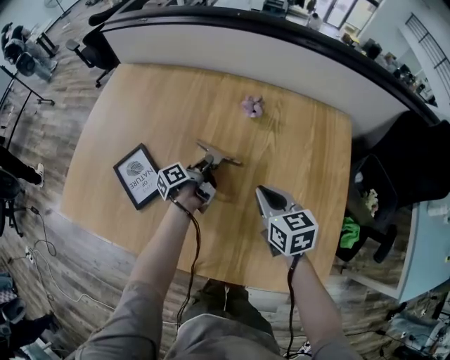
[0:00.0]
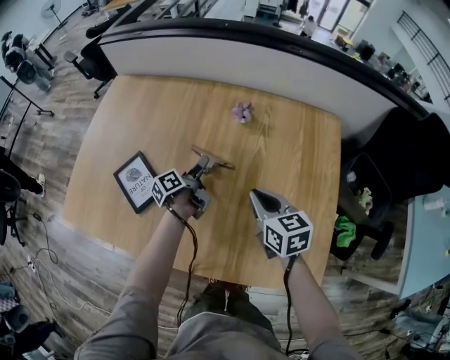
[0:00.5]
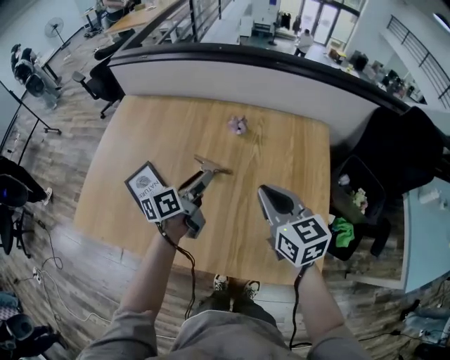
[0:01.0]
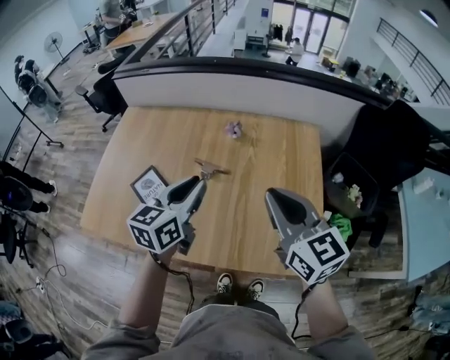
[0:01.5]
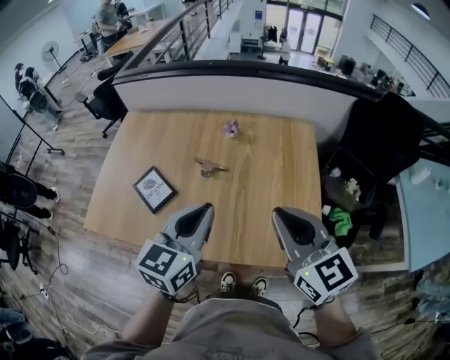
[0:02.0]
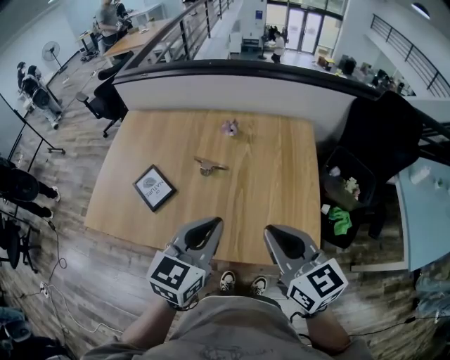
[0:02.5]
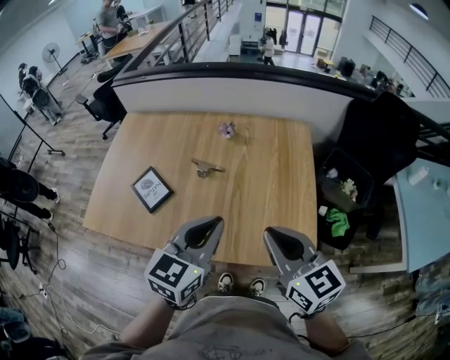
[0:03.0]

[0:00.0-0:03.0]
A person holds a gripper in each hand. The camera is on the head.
0:00.0 to 0:01.5: The grippers both shift upward and backward by approximately 35 cm. The left gripper rotates around the line of its fingers by approximately 70 degrees, clockwise from behind, and opens and closes again, while the right gripper turns by approximately 30 degrees.
0:01.5 to 0:03.0: The right gripper travels backward by about 10 cm; the left gripper is displaced backward and to the right by approximately 15 cm.

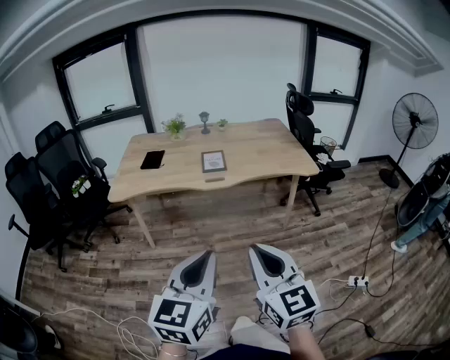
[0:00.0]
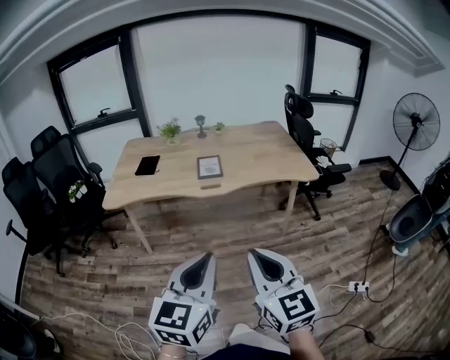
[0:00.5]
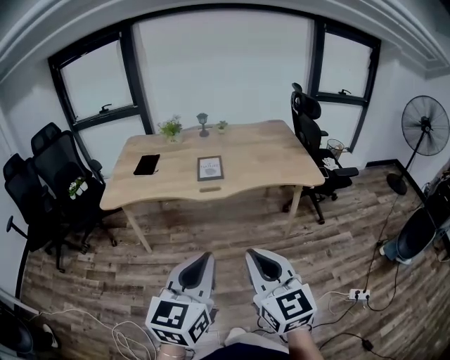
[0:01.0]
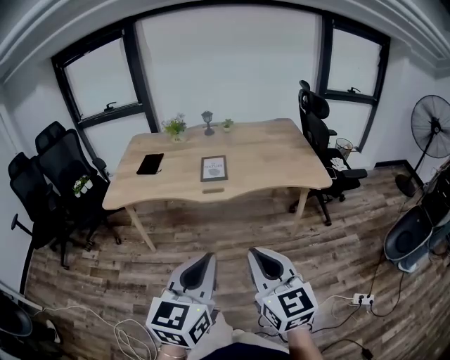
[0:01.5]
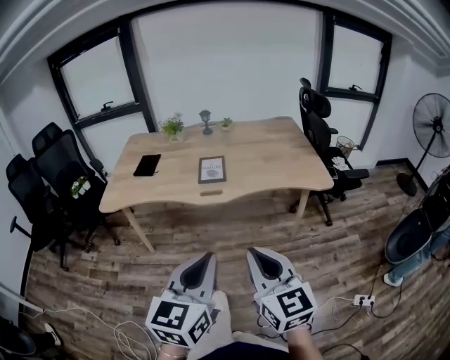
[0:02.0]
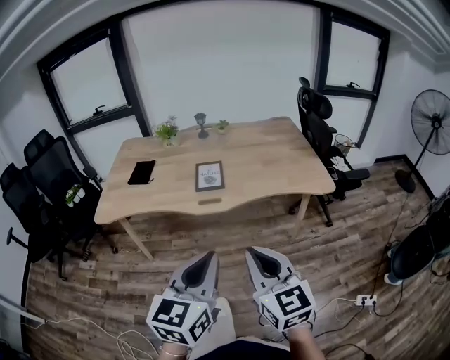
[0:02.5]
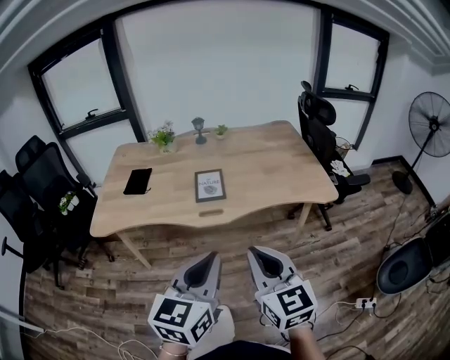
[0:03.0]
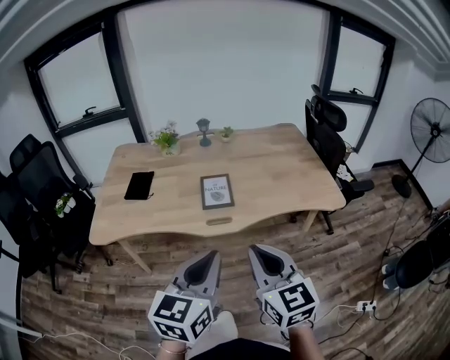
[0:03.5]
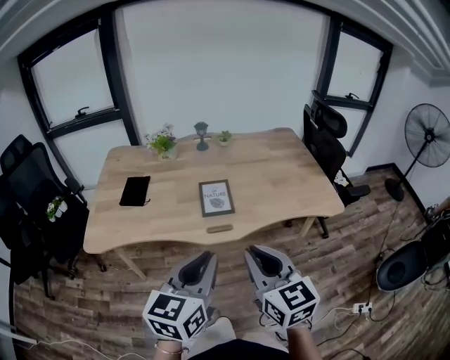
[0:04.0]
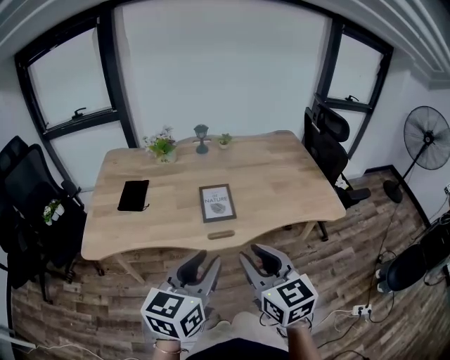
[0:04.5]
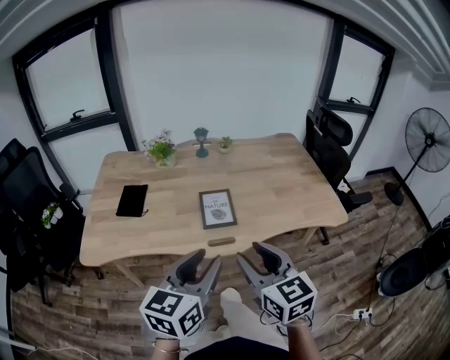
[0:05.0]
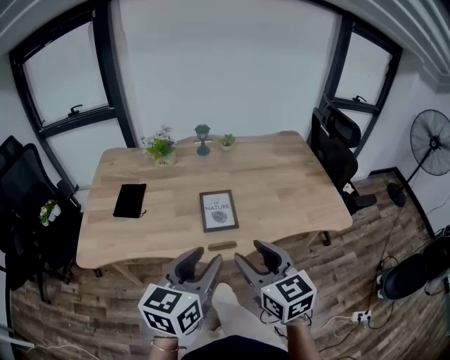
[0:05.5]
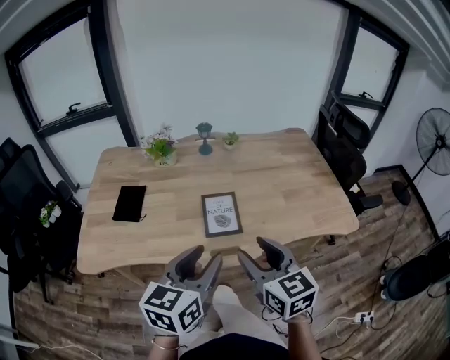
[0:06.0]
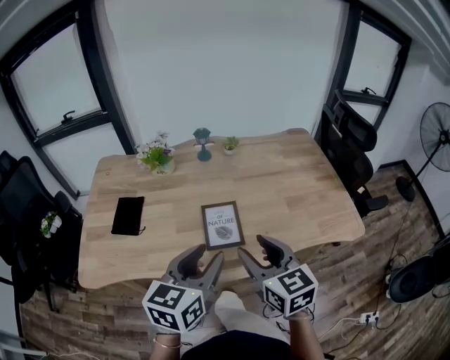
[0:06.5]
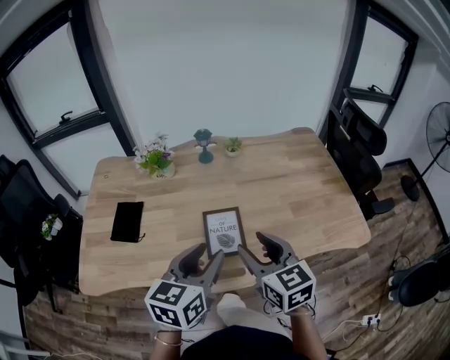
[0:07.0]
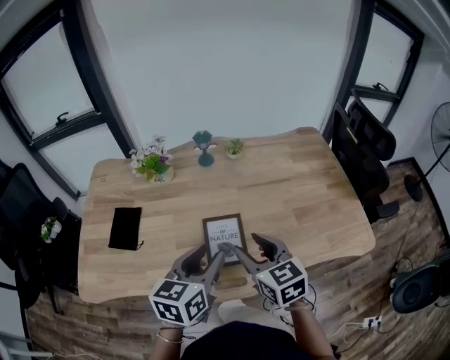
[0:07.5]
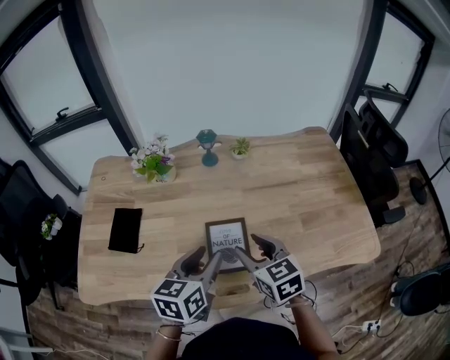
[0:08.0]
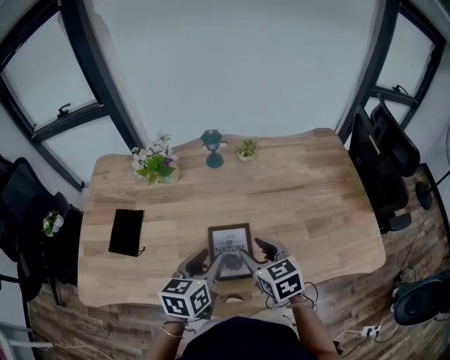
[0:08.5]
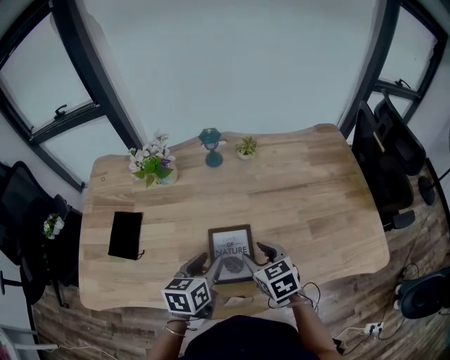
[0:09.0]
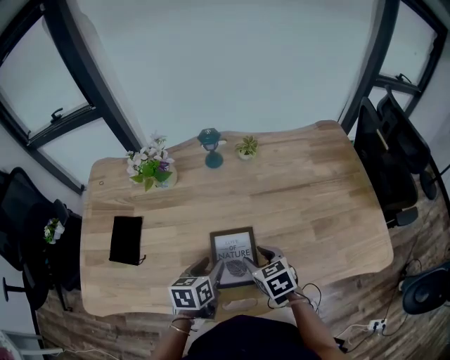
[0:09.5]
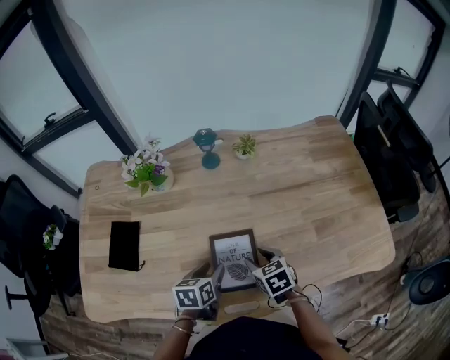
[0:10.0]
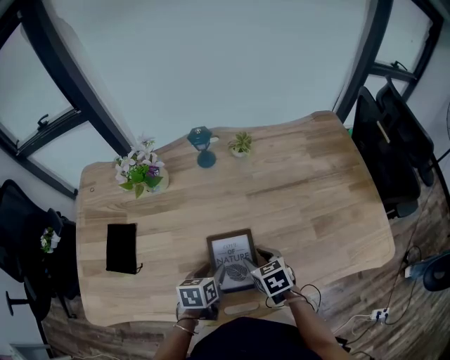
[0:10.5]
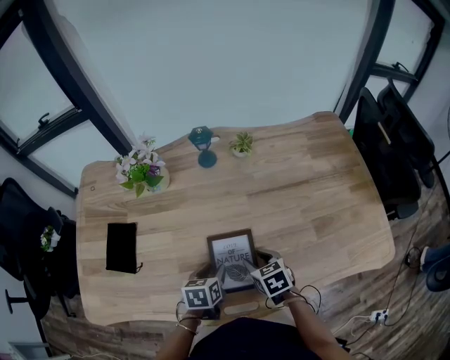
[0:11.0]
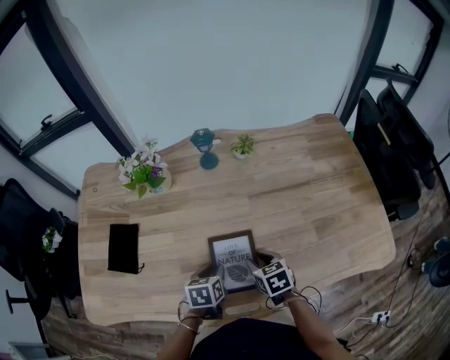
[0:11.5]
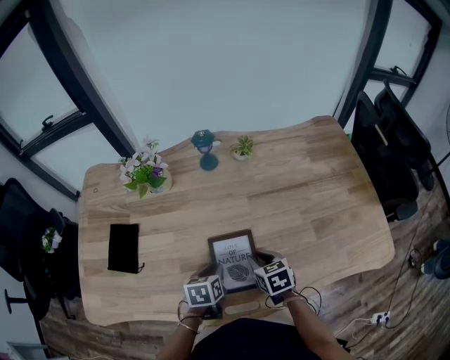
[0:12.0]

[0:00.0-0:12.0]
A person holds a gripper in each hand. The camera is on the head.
0:00.0 to 0:02.0: Both grippers move forward and to the right, some 20 cm.
0:02.0 to 0:04.0: The grippers both shift forward and to the left by about 25 cm.
0:04.0 to 0:06.0: Both grippers move forward, some 15 cm. The right gripper opens its fingers; the left gripper opens.
0:06.0 to 0:08.0: The two grippers go some 25 cm forward and downward.
0:08.0 to 0:10.0: Both grippers move downward, about 20 cm. The right gripper changes its angle by approximately 20 degrees. The left gripper swivels some 20 degrees.
0:10.0 to 0:12.0: The right gripper closes up.

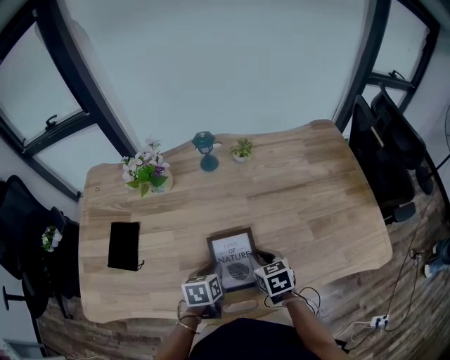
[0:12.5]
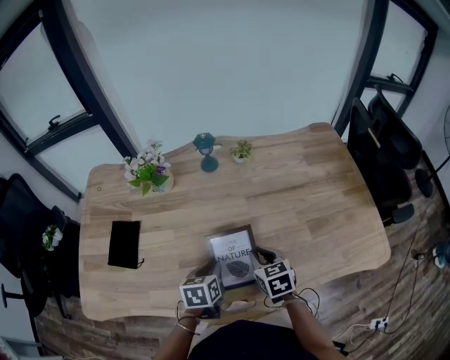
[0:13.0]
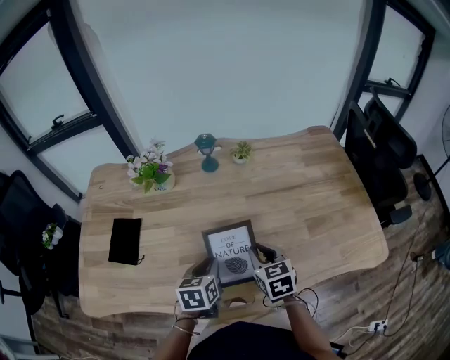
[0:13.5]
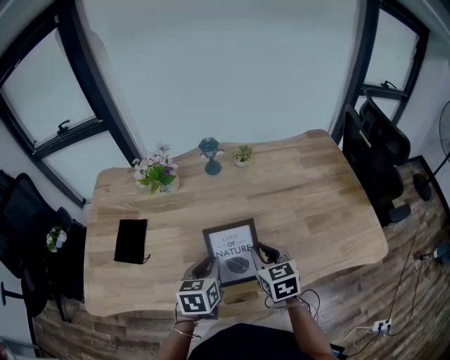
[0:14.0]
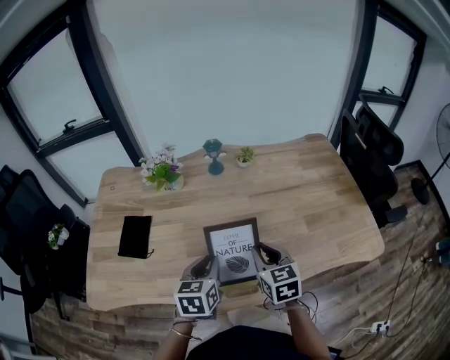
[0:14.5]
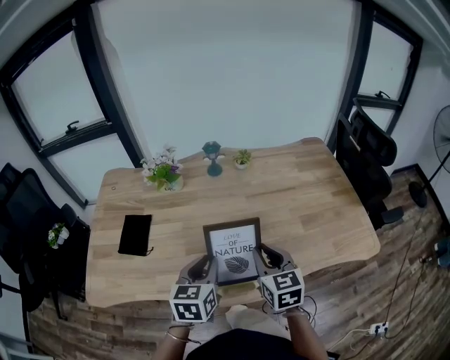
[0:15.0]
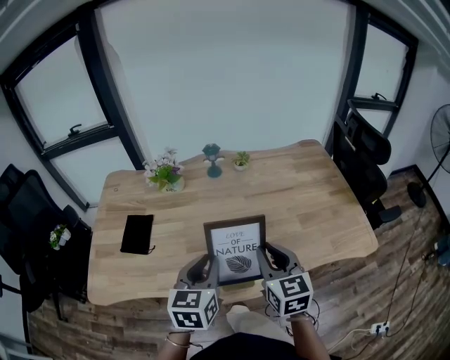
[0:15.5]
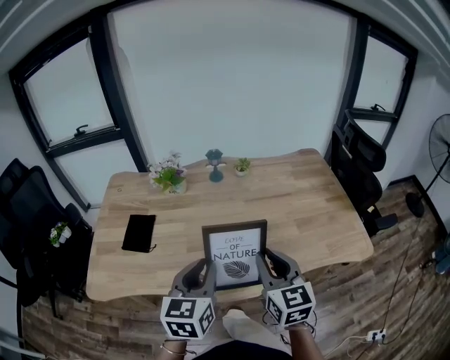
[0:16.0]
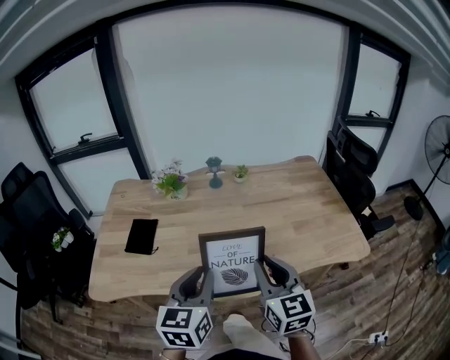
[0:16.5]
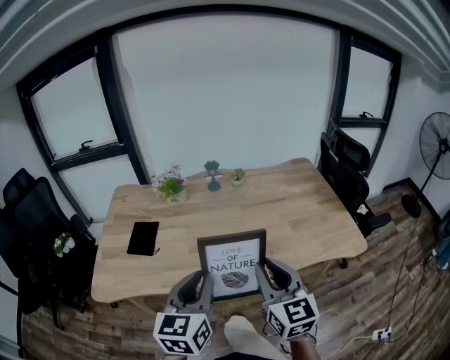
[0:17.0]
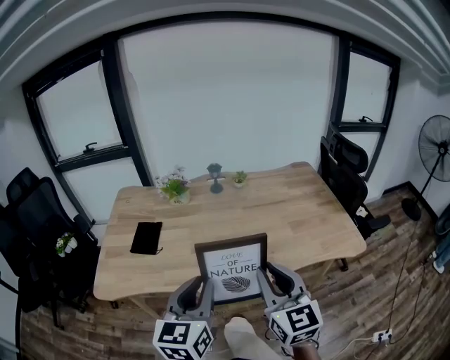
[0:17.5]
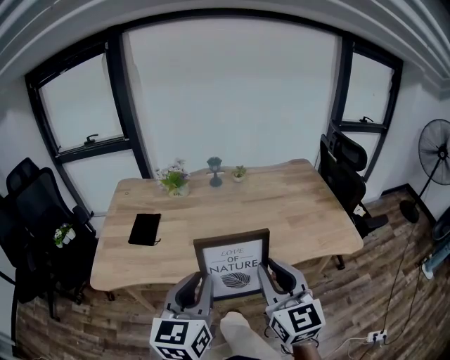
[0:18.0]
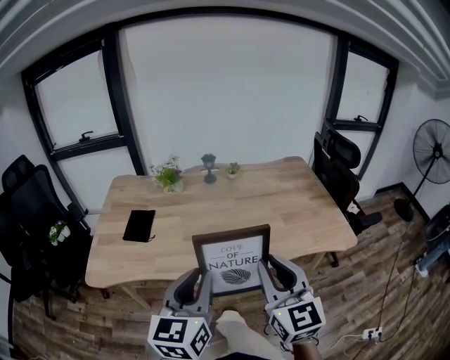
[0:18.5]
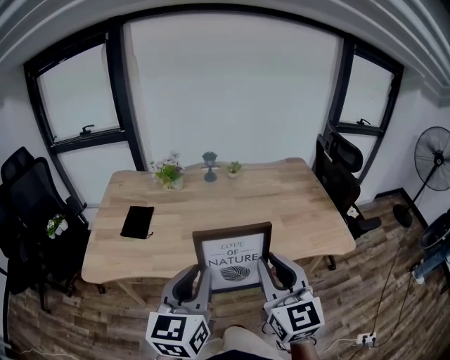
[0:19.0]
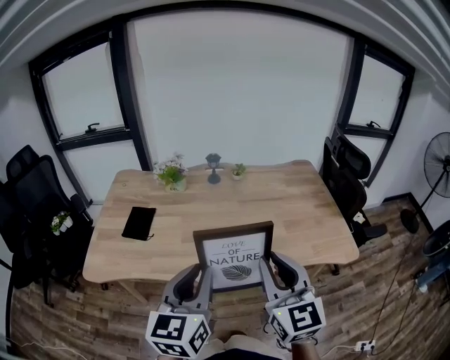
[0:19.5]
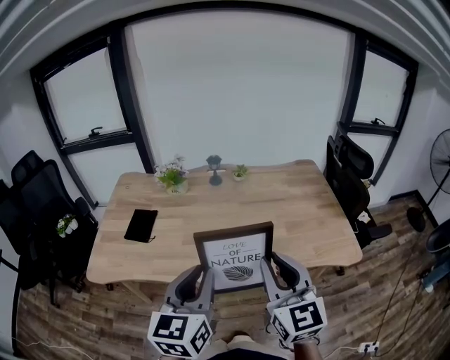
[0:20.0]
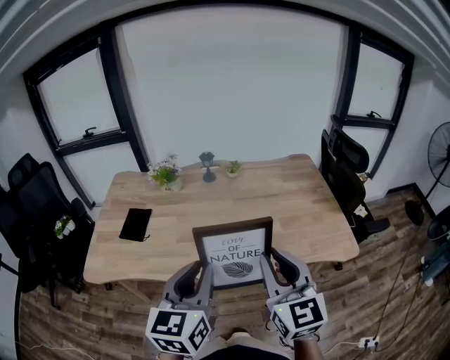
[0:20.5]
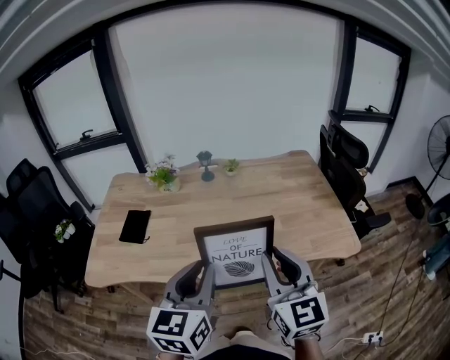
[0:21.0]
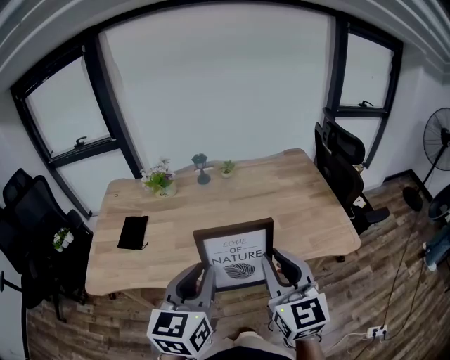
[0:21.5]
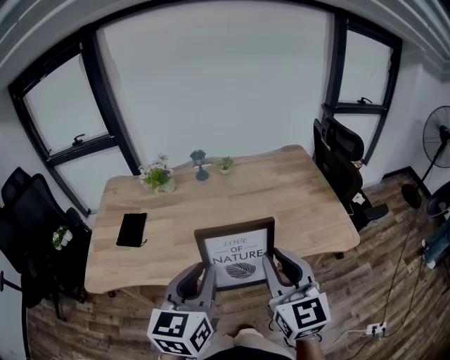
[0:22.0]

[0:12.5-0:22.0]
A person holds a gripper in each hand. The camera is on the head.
0:12.5 to 0:14.5: The left gripper moves upward, about 15 cm, and turns by roughly 20 degrees. The right gripper heads upward and backward, covering roughly 15 cm.
0:14.5 to 0:16.5: The grippers both shift upward and backward by about 20 cm. The right gripper turns by about 20 degrees.
0:16.5 to 0:18.0: The grippers both shift backward and upward by some 10 cm.
0:18.0 to 0:20.0: The grippers both shift to the right by about 5 cm.
0:20.0 to 0:22.0: The grippers move only a little.

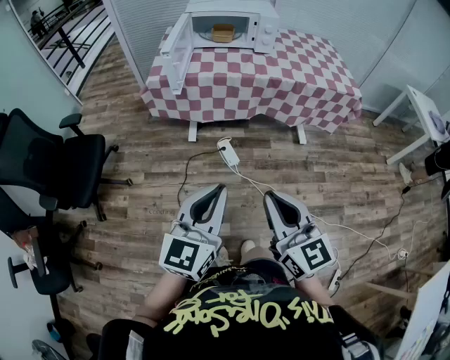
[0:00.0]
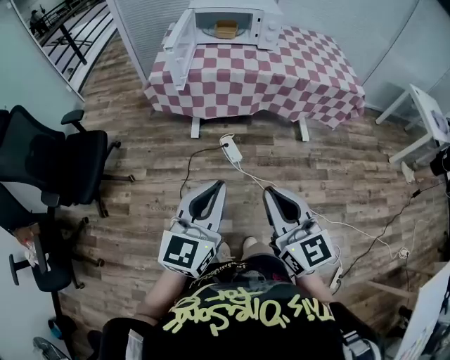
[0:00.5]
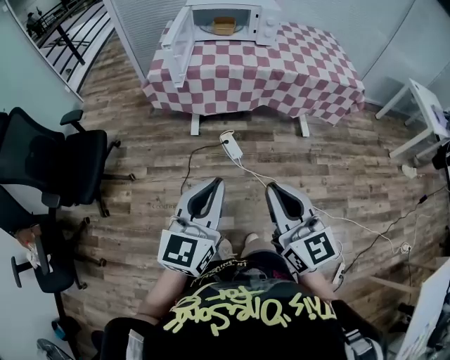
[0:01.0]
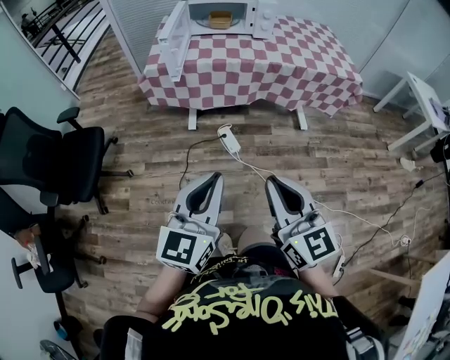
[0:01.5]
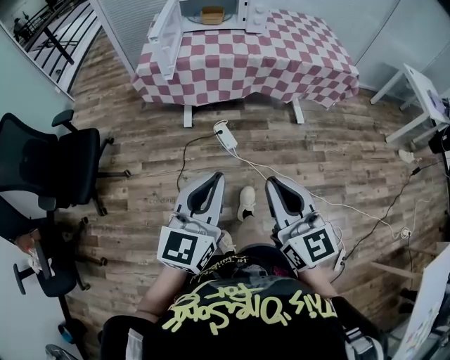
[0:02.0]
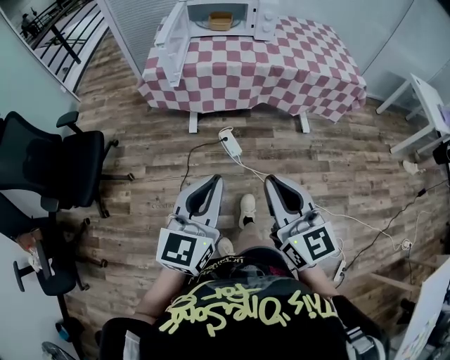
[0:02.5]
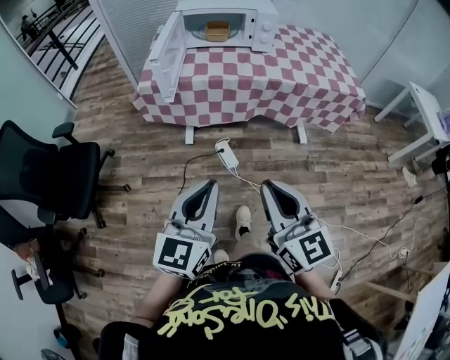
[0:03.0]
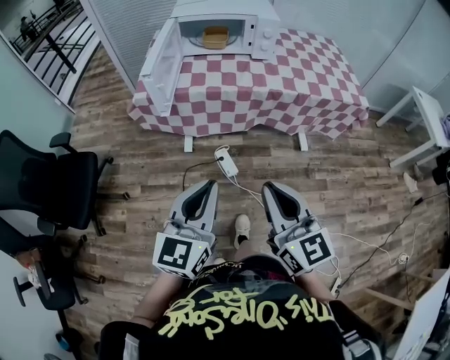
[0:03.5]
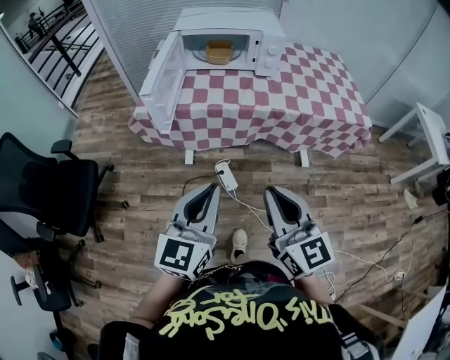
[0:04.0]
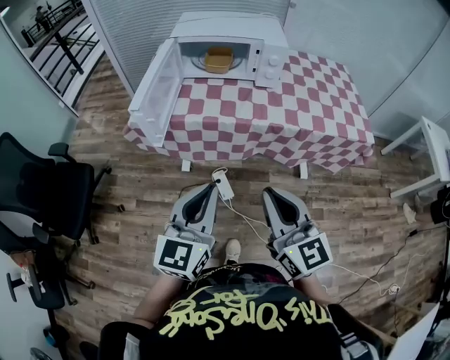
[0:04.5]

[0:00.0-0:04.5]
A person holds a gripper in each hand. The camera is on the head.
0:00.0 to 0:02.0: The grippers make only small movements.
0:02.0 to 0:04.5: The grippers both shift forward by roughly 25 cm.
